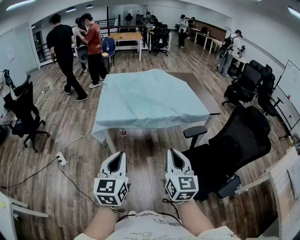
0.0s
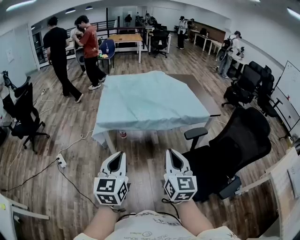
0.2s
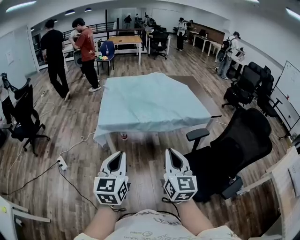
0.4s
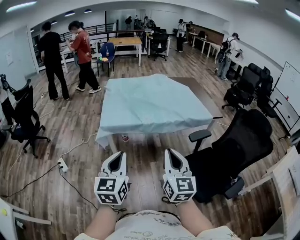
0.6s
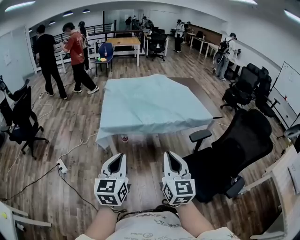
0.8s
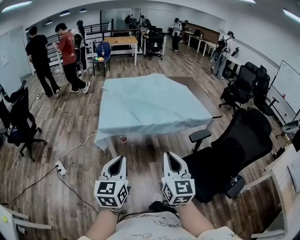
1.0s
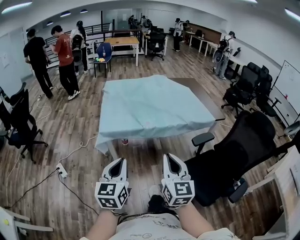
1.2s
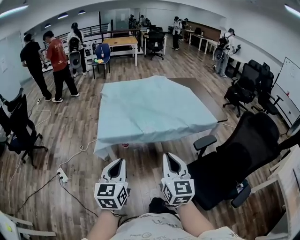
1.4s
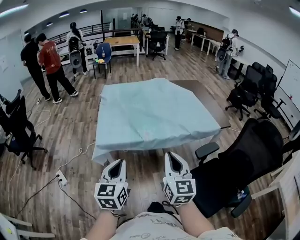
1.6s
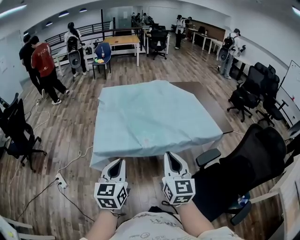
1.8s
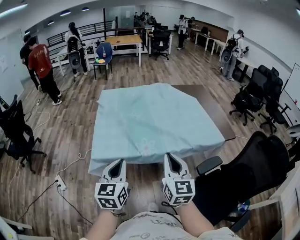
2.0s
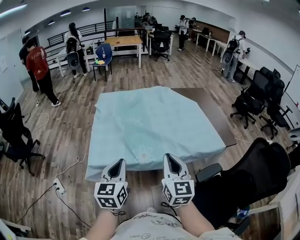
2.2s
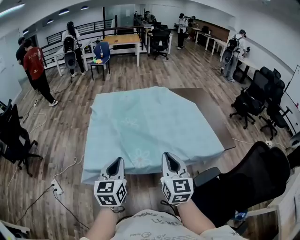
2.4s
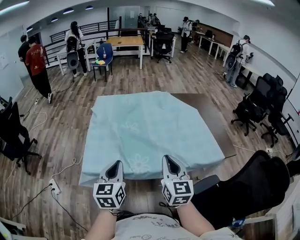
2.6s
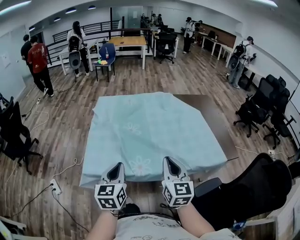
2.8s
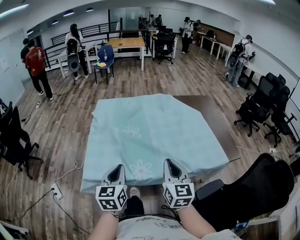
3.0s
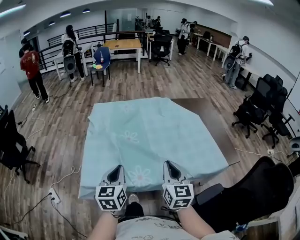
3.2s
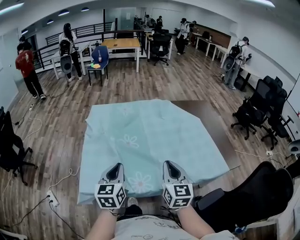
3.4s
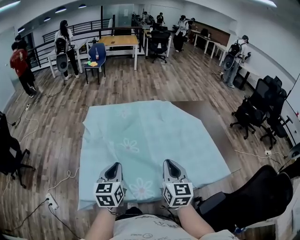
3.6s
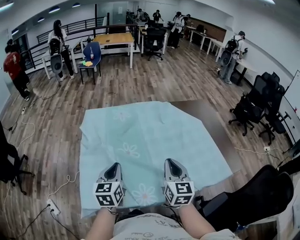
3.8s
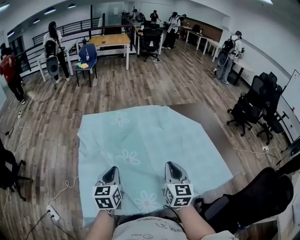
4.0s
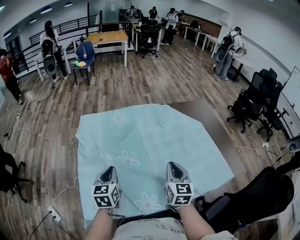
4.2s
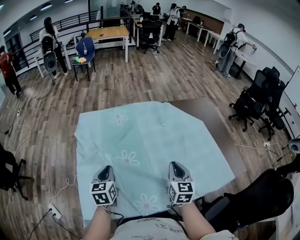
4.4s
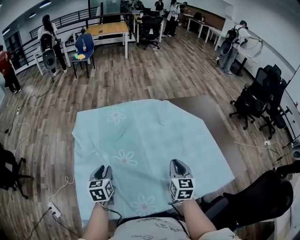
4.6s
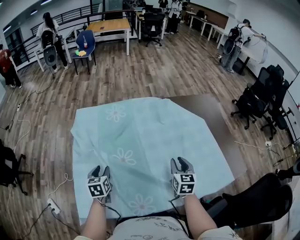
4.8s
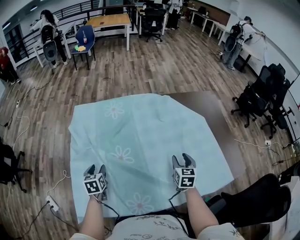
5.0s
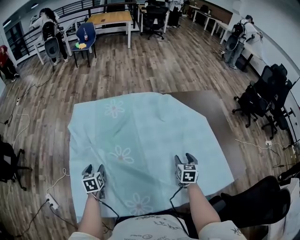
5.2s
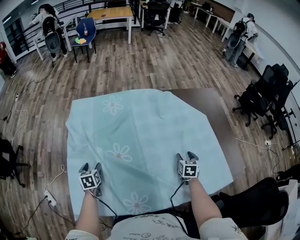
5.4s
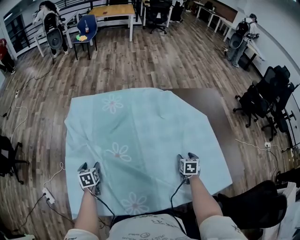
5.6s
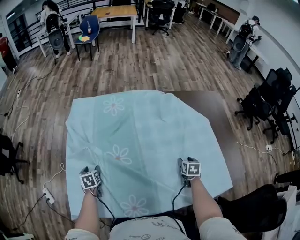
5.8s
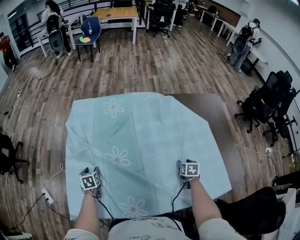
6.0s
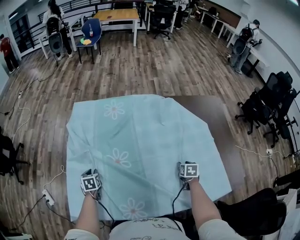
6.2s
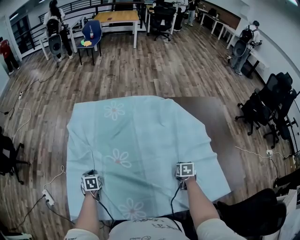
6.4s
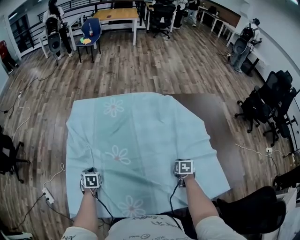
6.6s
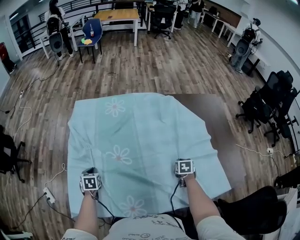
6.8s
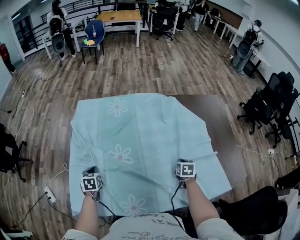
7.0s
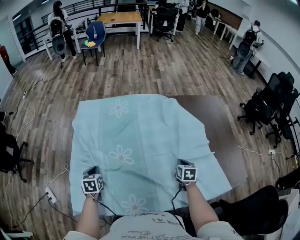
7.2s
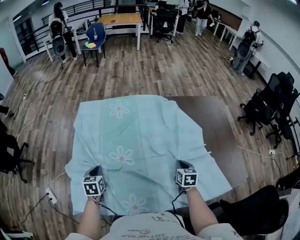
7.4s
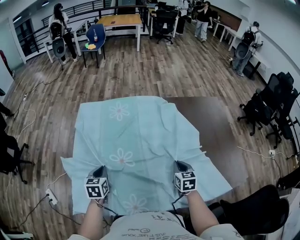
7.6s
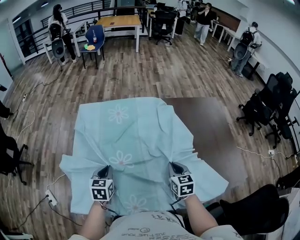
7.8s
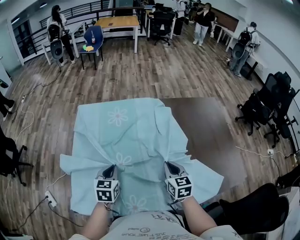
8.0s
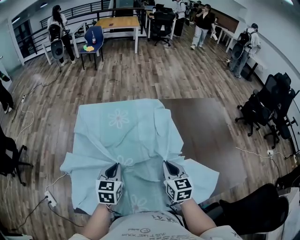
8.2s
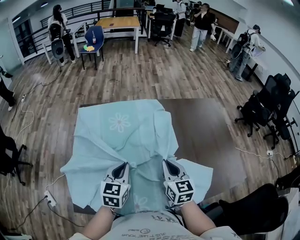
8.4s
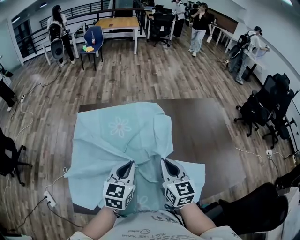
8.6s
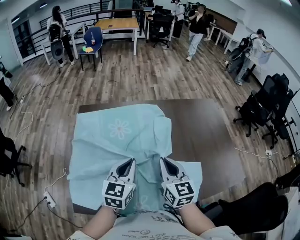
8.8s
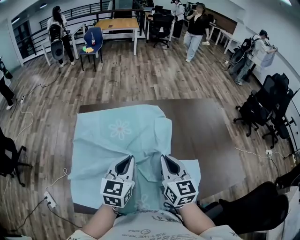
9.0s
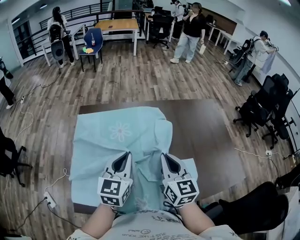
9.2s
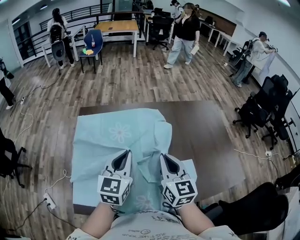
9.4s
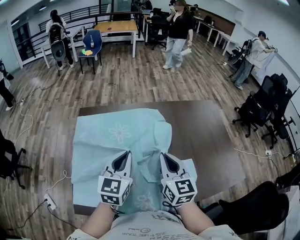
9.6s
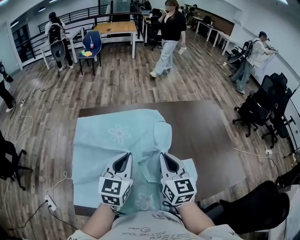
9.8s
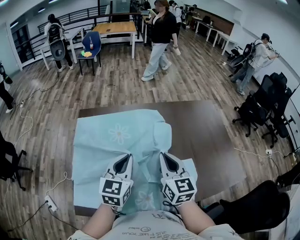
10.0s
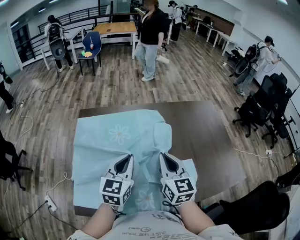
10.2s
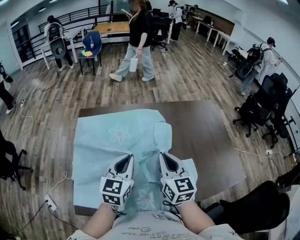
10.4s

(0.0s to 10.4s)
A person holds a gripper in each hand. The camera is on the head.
0.0s - 1.4s: Both grippers travel together forward and to the left, approximately 15 cm.
1.4s - 3.0s: The two grippers go approximately 35 cm forward.
3.0s - 4.4s: Both grippers move forward, some 25 cm.
4.4s - 6.0s: The right gripper shifts some 30 cm downward, to the right and forward, angles its fingers downward, by approximately 40 degrees, and opens; the left gripper is displaced downward by roughly 20 cm, swivels about 30 degrees, and opens up.
6.0s - 7.4s: The left gripper goes some 10 cm upward, and closes its fingers; the right gripper moves upward and to the left, approximately 10 cm, and closes up.
7.4s - 9.0s: The right gripper is displaced upward and to the left by approximately 25 cm, and tilts its fingers about 30 degrees upward. The left gripper heads upward and to the right, covering about 25 cm, and rotates some 40 degrees.
9.0s - 10.4s: There are only small adjustments of the grippers.

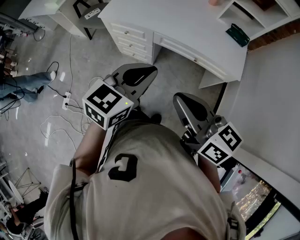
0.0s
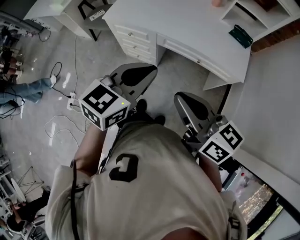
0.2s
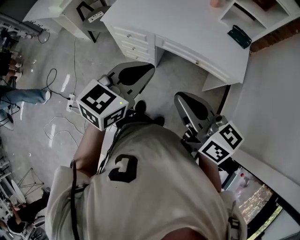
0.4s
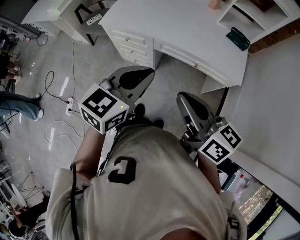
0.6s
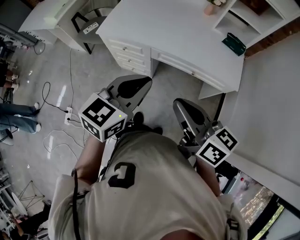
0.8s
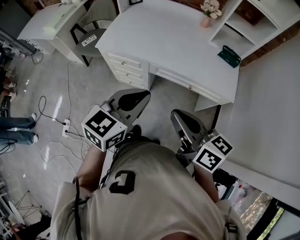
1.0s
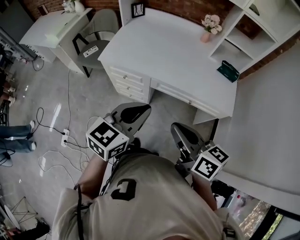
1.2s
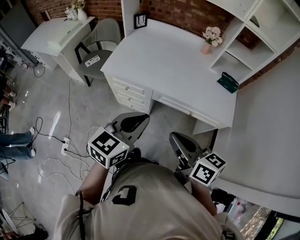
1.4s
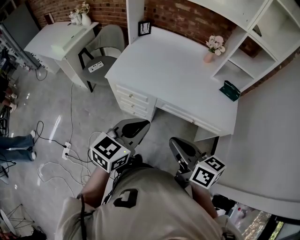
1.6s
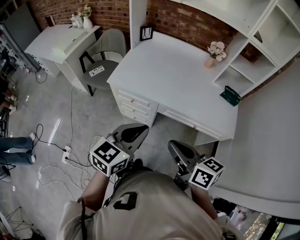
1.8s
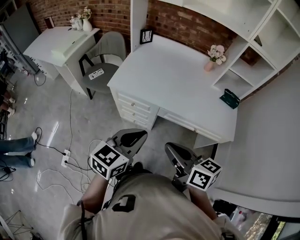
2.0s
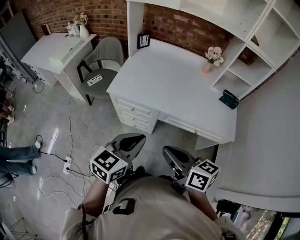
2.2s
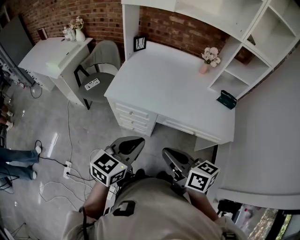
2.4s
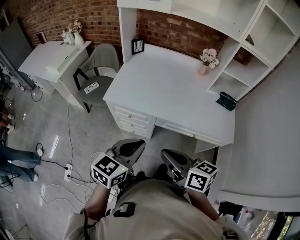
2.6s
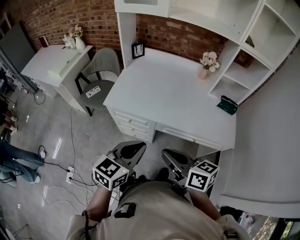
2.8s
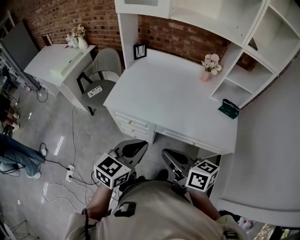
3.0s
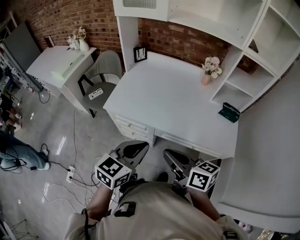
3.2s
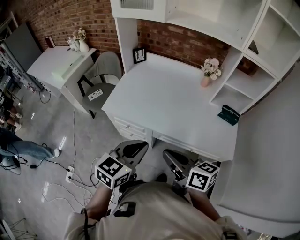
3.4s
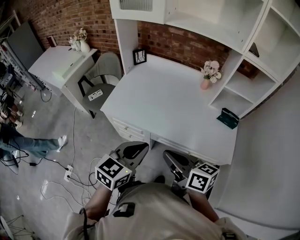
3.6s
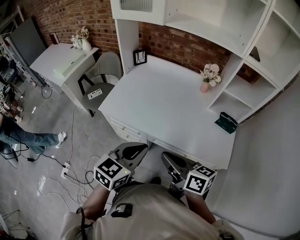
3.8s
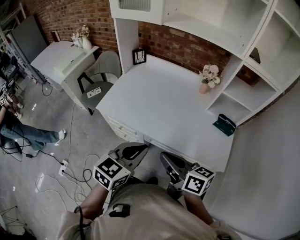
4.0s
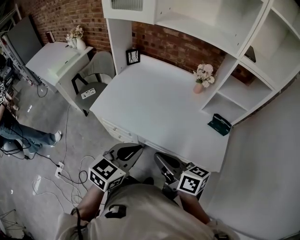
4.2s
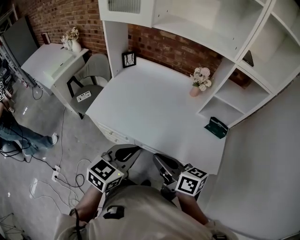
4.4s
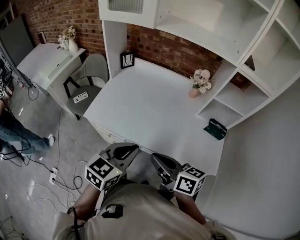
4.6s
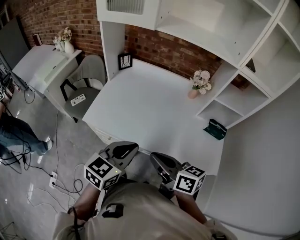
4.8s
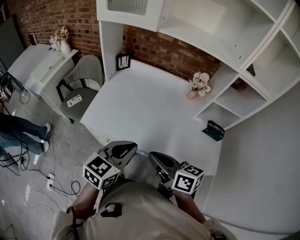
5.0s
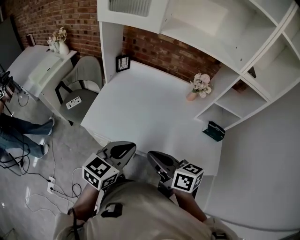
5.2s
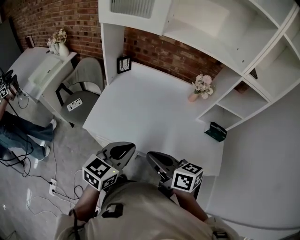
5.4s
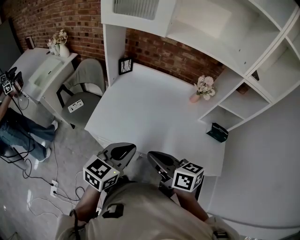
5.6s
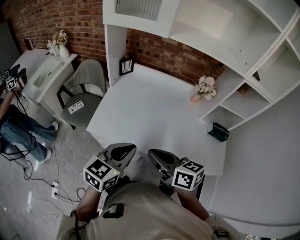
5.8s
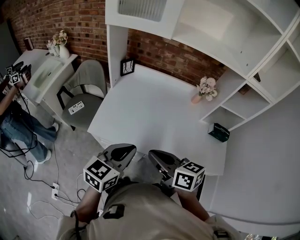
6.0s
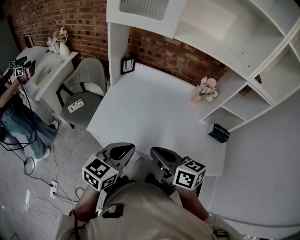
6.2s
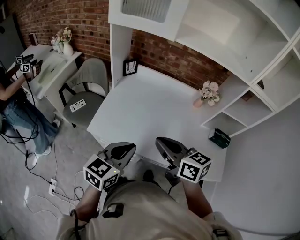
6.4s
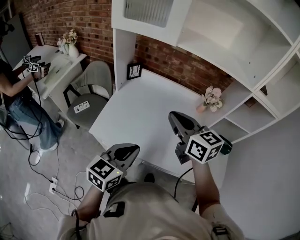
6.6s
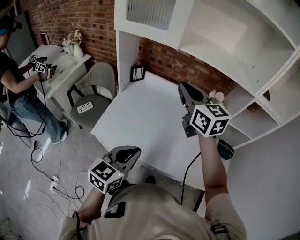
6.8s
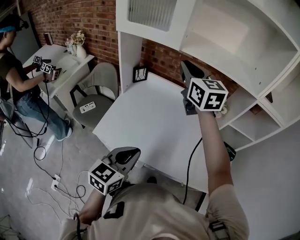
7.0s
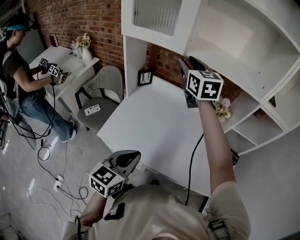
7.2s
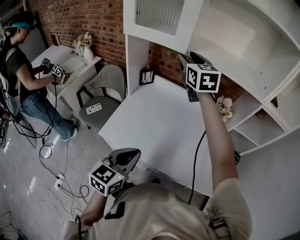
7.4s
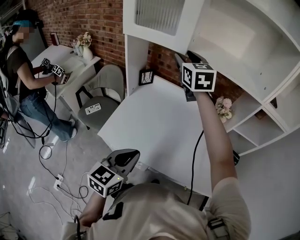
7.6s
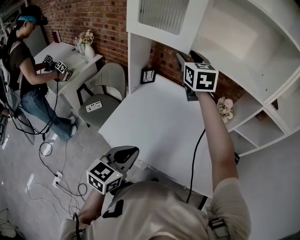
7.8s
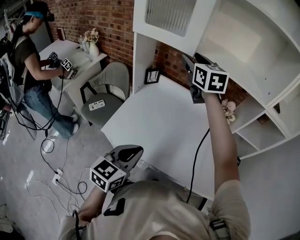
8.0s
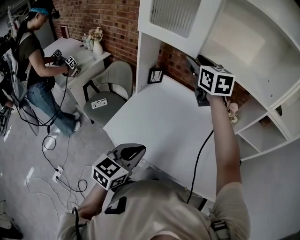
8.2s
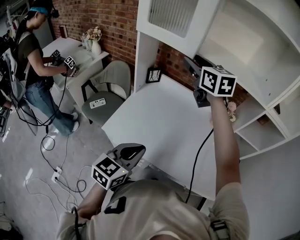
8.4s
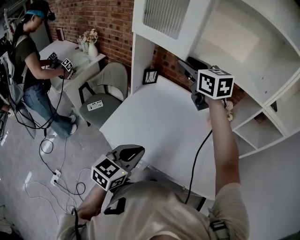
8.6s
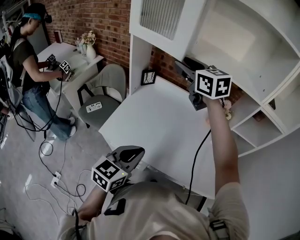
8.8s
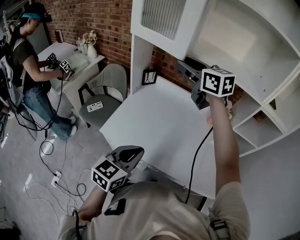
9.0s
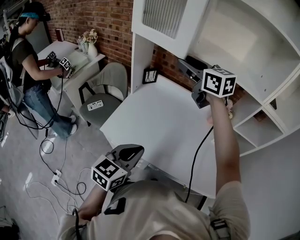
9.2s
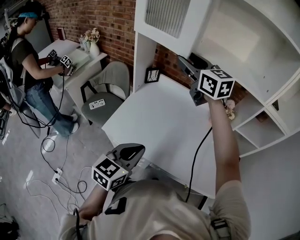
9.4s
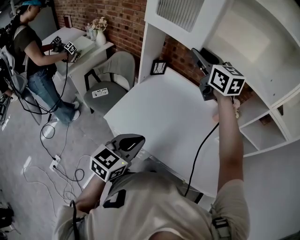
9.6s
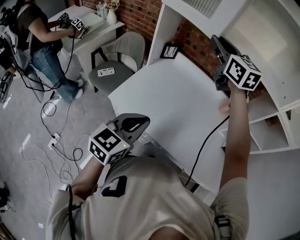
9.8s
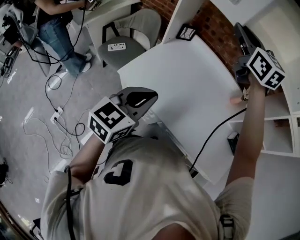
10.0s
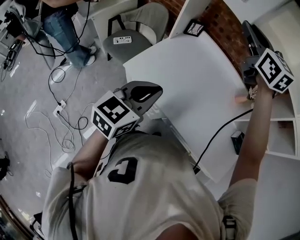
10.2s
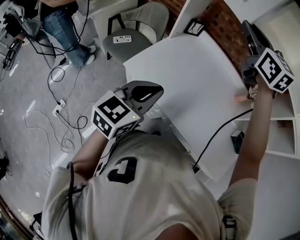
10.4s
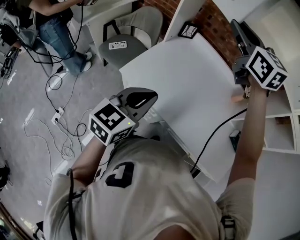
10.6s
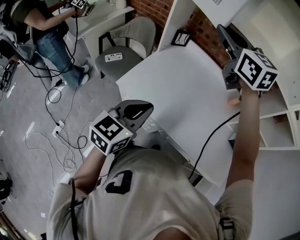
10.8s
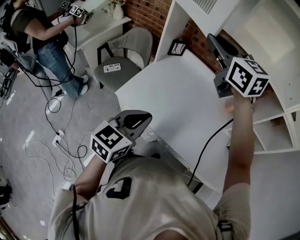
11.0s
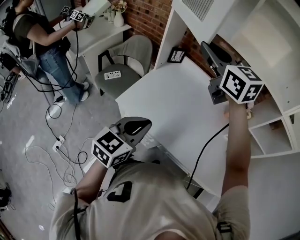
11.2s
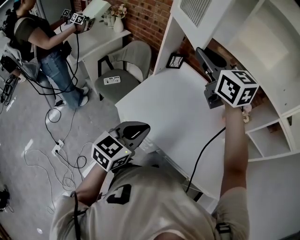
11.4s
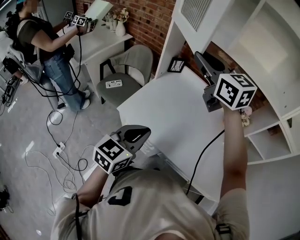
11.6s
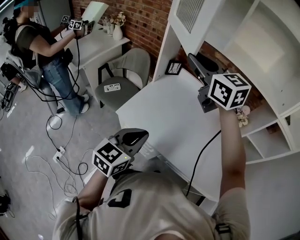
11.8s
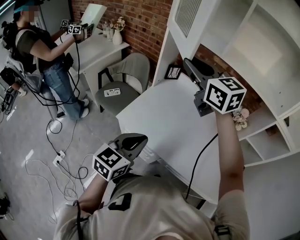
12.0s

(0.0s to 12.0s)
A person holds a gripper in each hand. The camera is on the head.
0.0s - 1.6s: The left gripper heads to the left and forward, covering about 10 cm. The right gripper heads forward and to the left, covering approximately 10 cm.
1.6s - 3.0s: Both grippers travel together forward, roughly 5 cm.
3.0s - 4.4s: Both grippers travel together to the right and forward, approximately 10 cm.
4.4s - 6.0s: Both grippers move to the left and forward, about 15 cm.
6.0s - 7.6s: The right gripper travels forward and upward by some 40 cm, rolls counterclockwise, seen from behind, by some 40 degrees, and opens.
7.6s - 9.0s: The right gripper travels backward by approximately 5 cm, and rotates roughly 30 degrees.
9.0s - 10.4s: The right gripper closes up, while the left gripper heads to the left, covering about 5 cm.
10.4s - 12.0s: The right gripper is displaced to the left by about 10 cm.

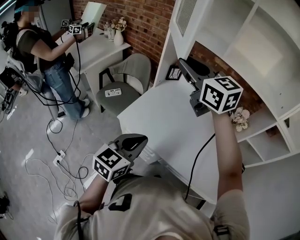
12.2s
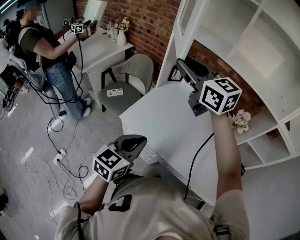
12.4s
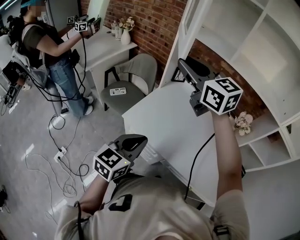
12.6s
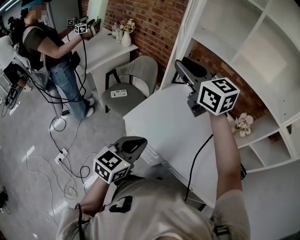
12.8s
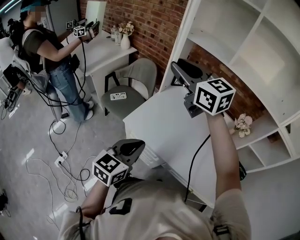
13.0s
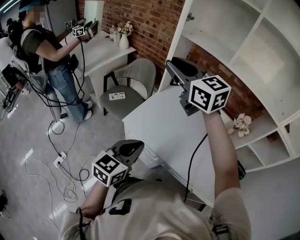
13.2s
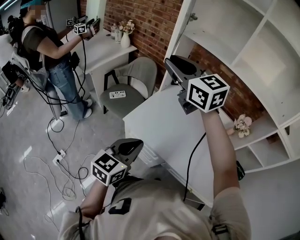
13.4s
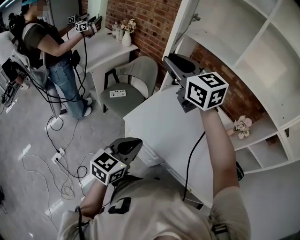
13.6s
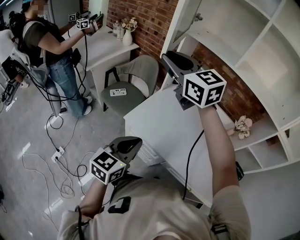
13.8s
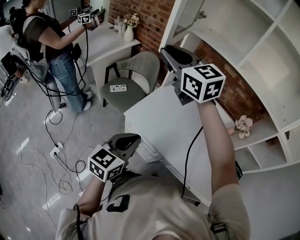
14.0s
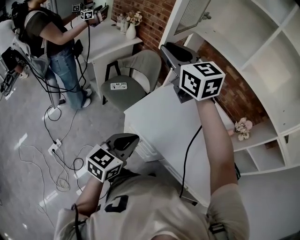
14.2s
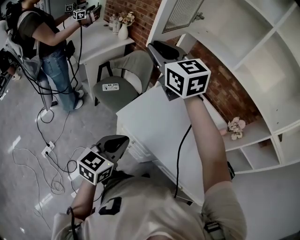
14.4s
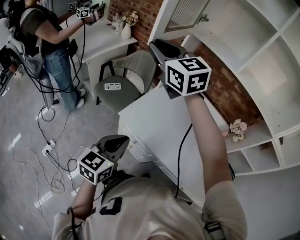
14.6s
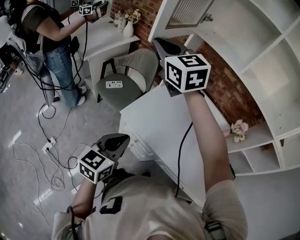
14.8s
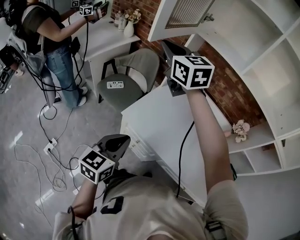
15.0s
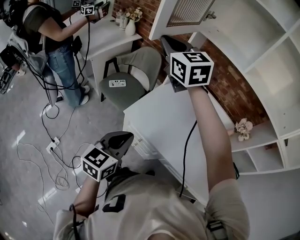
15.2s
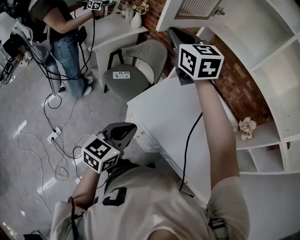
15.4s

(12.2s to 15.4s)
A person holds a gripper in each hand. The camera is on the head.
12.2s - 13.8s: The left gripper heads to the left, covering about 5 cm, while the right gripper goes some 10 cm to the left.
13.8s - 15.4s: The right gripper goes roughly 5 cm forward.
